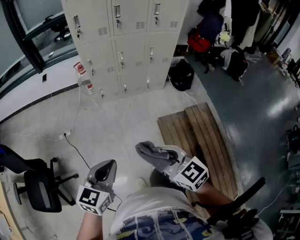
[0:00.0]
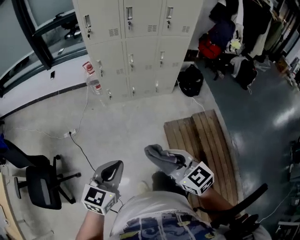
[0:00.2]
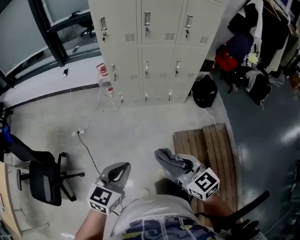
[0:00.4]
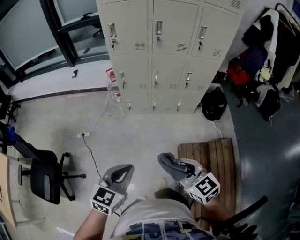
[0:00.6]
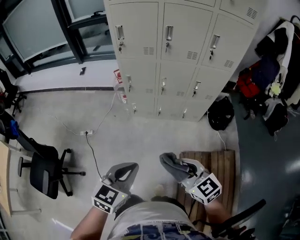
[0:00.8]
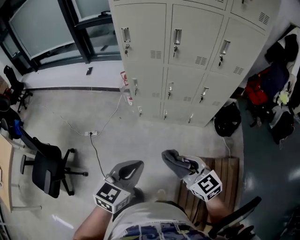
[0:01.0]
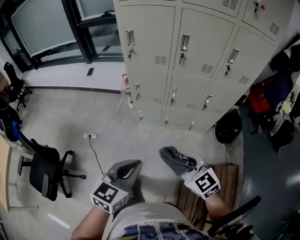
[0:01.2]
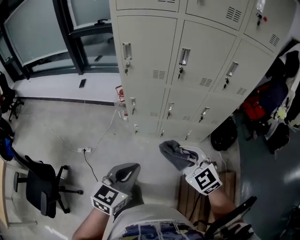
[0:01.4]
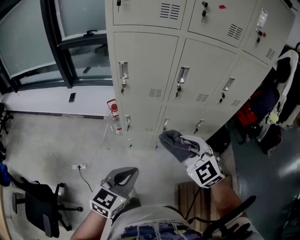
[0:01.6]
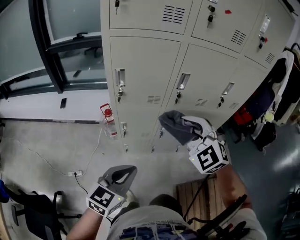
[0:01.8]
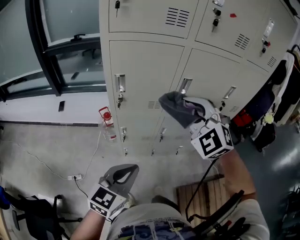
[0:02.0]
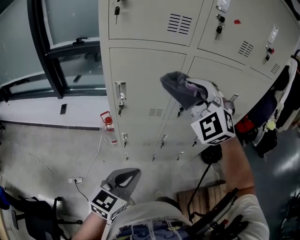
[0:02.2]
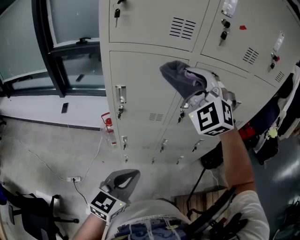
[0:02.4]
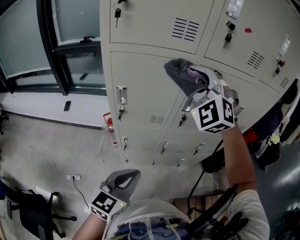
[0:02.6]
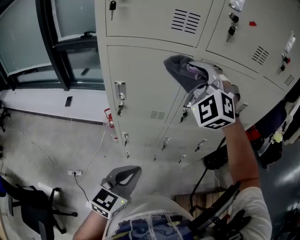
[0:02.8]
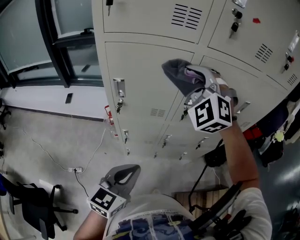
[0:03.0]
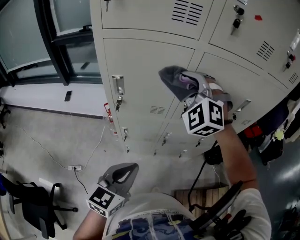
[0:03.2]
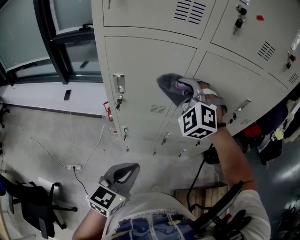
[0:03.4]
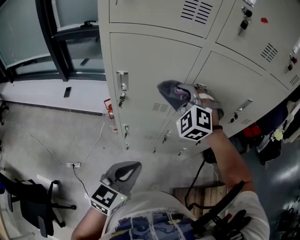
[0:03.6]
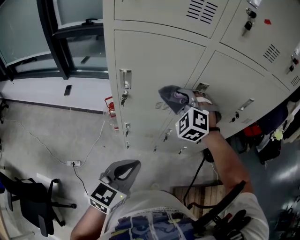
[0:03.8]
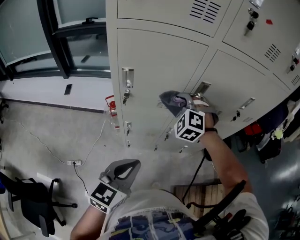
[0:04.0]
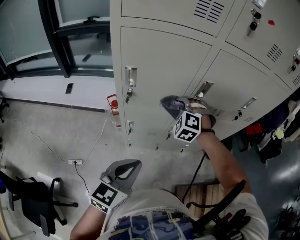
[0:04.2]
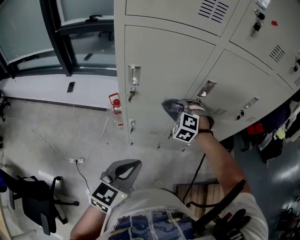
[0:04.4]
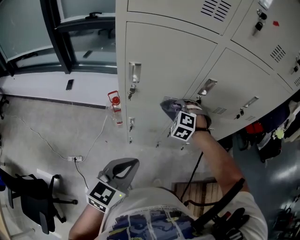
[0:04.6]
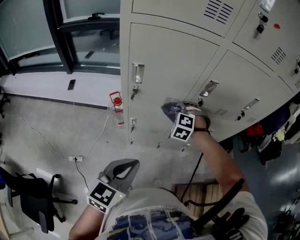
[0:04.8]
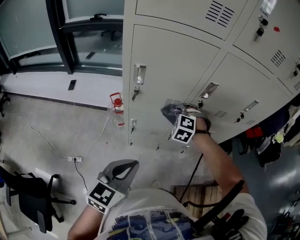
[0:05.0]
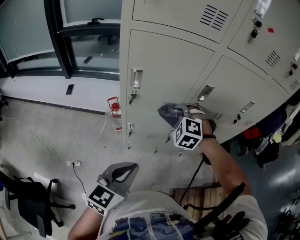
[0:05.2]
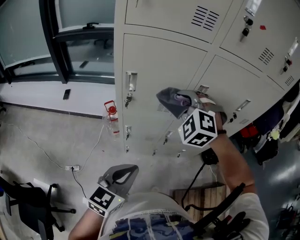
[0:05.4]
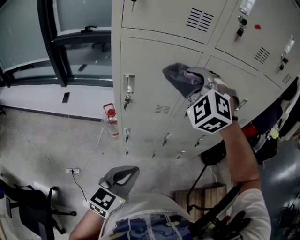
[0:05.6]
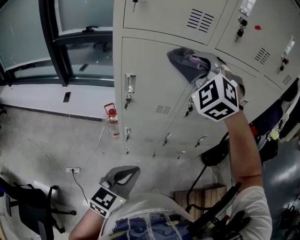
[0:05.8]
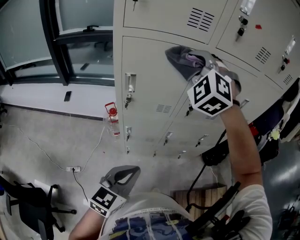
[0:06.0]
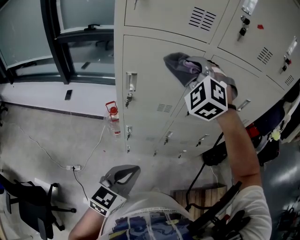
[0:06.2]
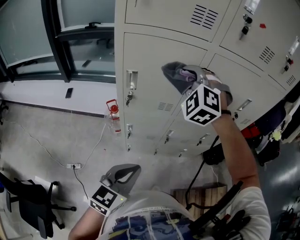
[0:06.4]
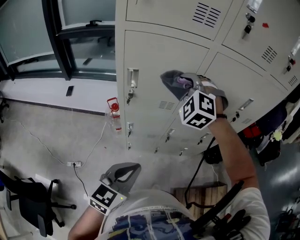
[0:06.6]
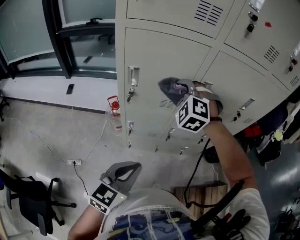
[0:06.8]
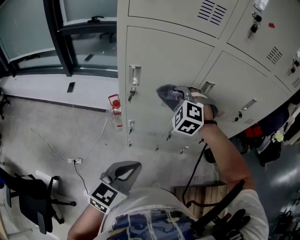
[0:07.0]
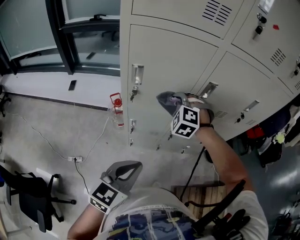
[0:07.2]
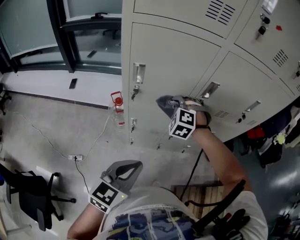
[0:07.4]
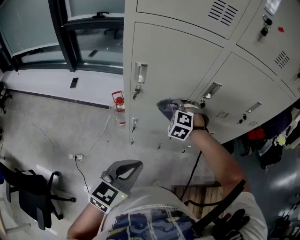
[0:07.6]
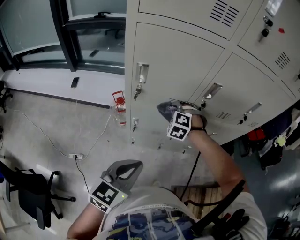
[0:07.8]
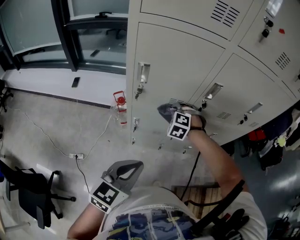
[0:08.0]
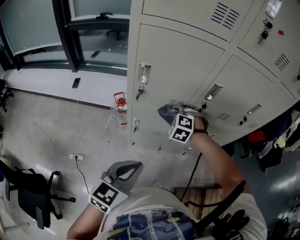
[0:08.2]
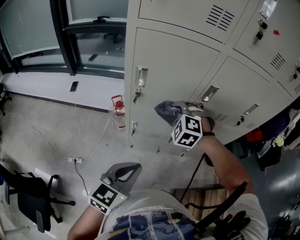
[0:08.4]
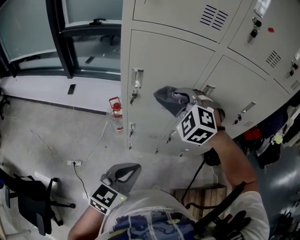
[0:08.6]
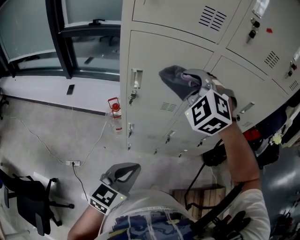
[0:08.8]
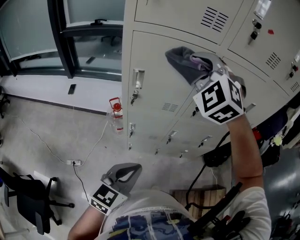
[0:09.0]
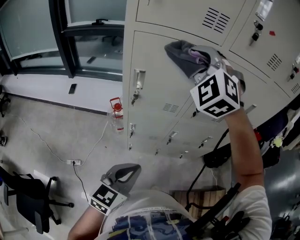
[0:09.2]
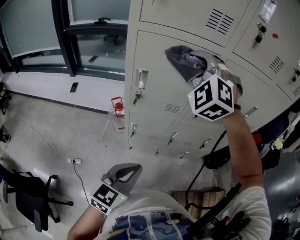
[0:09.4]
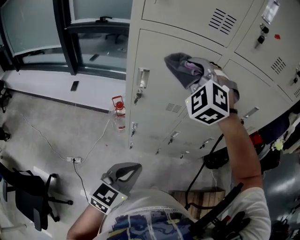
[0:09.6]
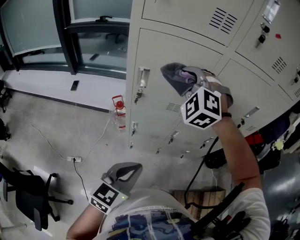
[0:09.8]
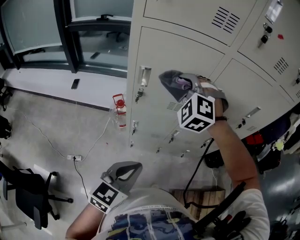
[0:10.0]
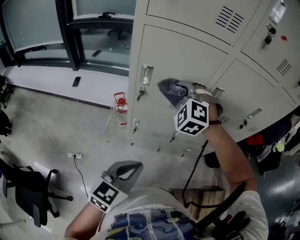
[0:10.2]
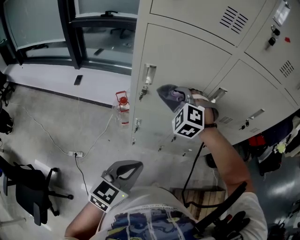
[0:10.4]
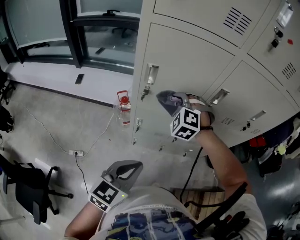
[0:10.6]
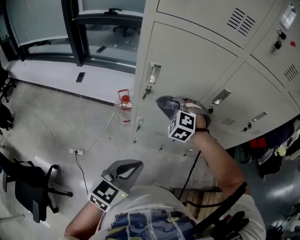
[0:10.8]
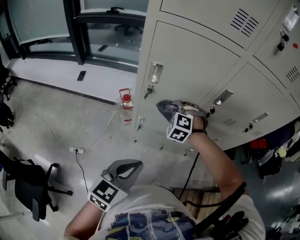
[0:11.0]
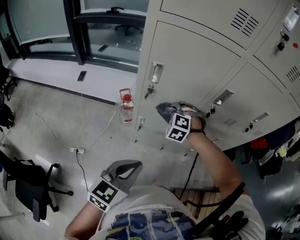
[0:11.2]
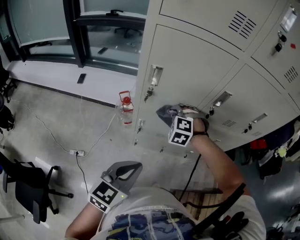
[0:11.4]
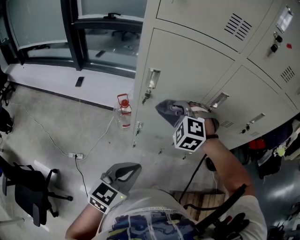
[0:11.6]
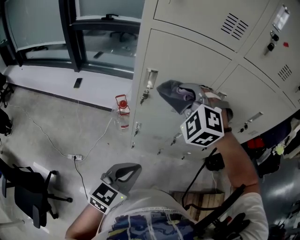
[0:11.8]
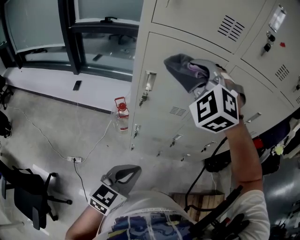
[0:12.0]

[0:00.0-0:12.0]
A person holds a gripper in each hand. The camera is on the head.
0:00.0 to 0:01.6: The pair of grippers is taken forward, about 50 cm. The right gripper turns by about 40 degrees.
0:01.6 to 0:03.0: The right gripper is displaced forward and upward by roughly 35 cm, and changes its angle by roughly 40 degrees. The left gripper moves forward, approximately 15 cm.
0:03.0 to 0:04.4: The left gripper changes place by some 5 cm, while the right gripper travels downward by approximately 30 cm, and tilts its fingers about 30 degrees downward.
0:04.4 to 0:06.0: The right gripper travels upward by some 30 cm, and rotates roughly 30 degrees.
0:06.0 to 0:07.6: The right gripper shifts about 35 cm downward, and tilts its fingers roughly 30 degrees downward.
0:07.6 to 0:09.0: The right gripper heads upward, covering approximately 30 cm, and rotates about 30 degrees.
0:09.0 to 0:10.4: The right gripper goes some 20 cm downward.
0:10.4 to 0:12.0: The right gripper travels upward by roughly 20 cm.

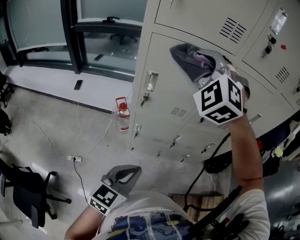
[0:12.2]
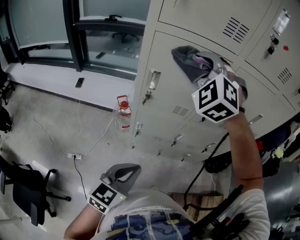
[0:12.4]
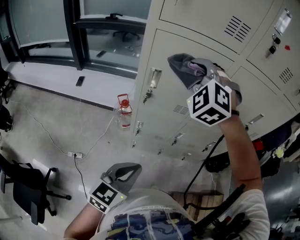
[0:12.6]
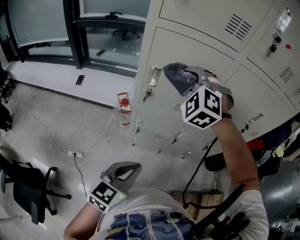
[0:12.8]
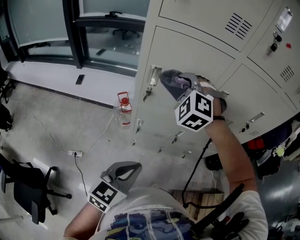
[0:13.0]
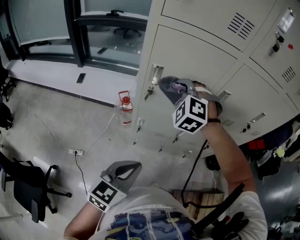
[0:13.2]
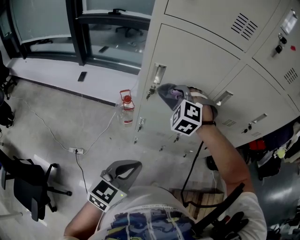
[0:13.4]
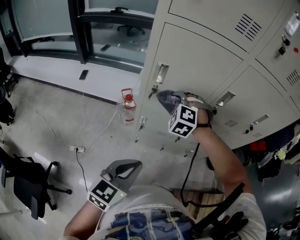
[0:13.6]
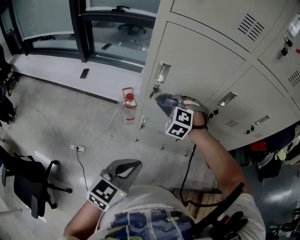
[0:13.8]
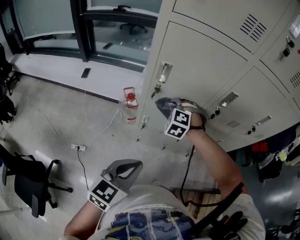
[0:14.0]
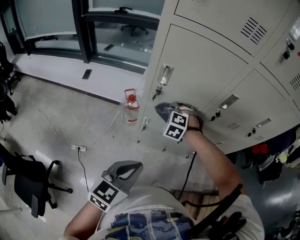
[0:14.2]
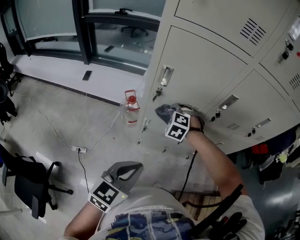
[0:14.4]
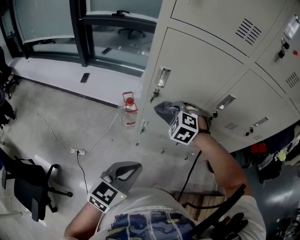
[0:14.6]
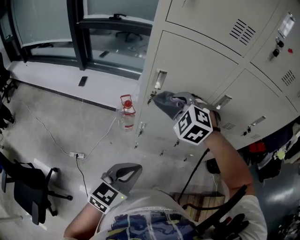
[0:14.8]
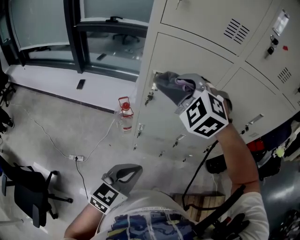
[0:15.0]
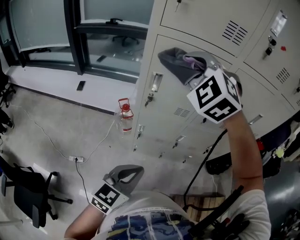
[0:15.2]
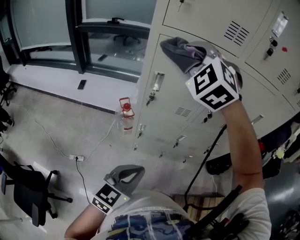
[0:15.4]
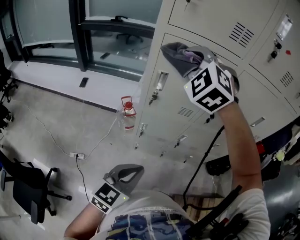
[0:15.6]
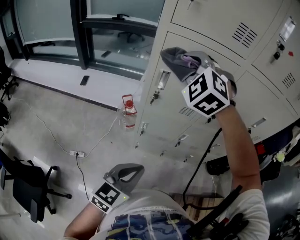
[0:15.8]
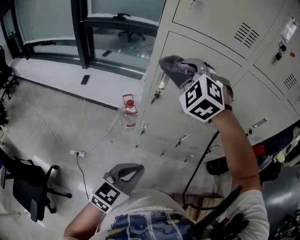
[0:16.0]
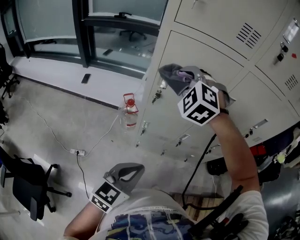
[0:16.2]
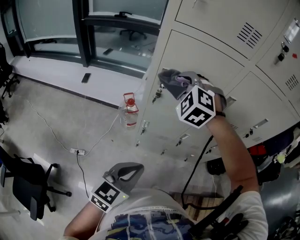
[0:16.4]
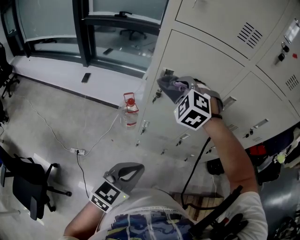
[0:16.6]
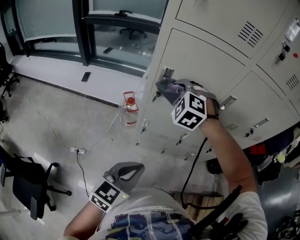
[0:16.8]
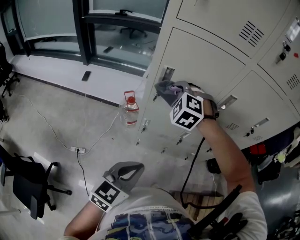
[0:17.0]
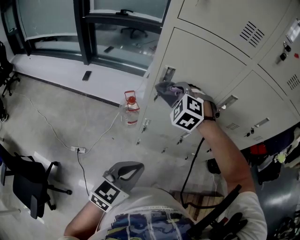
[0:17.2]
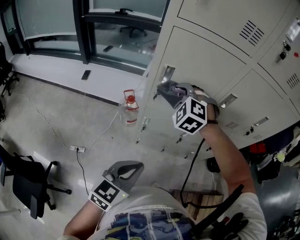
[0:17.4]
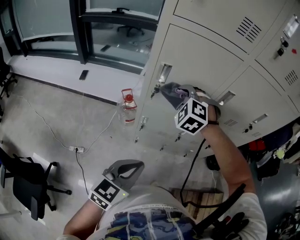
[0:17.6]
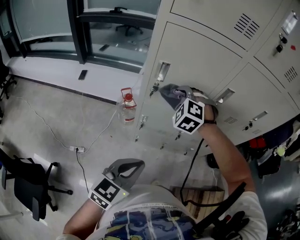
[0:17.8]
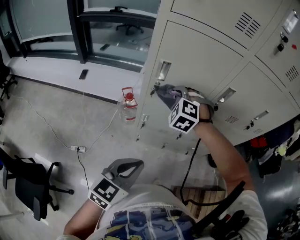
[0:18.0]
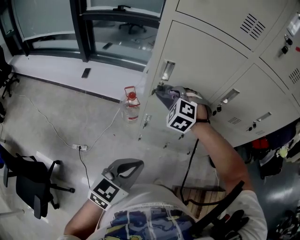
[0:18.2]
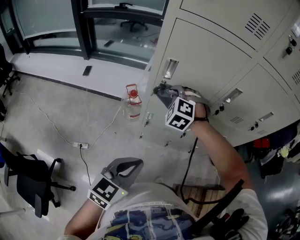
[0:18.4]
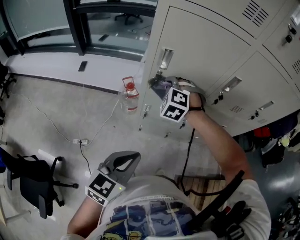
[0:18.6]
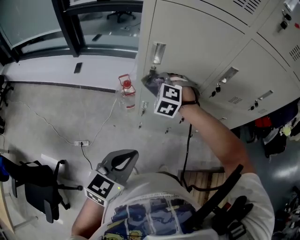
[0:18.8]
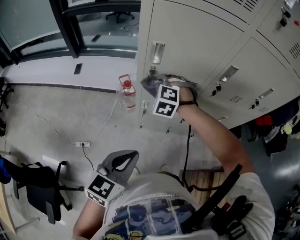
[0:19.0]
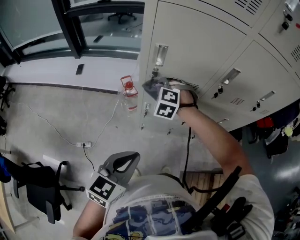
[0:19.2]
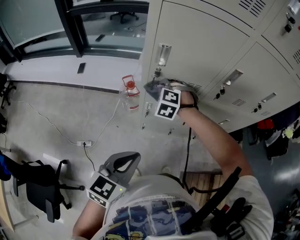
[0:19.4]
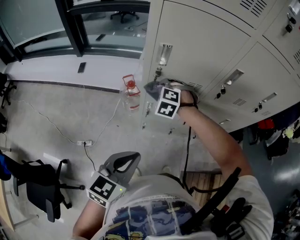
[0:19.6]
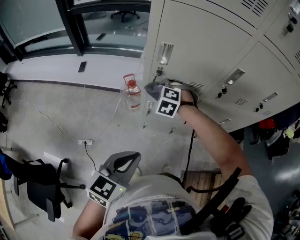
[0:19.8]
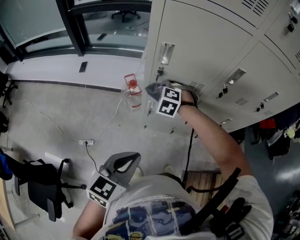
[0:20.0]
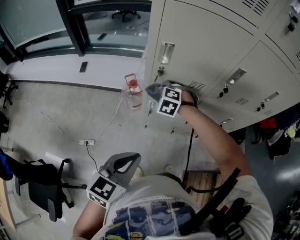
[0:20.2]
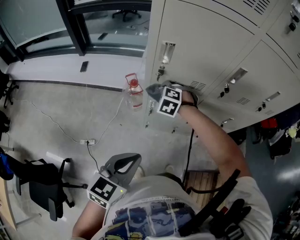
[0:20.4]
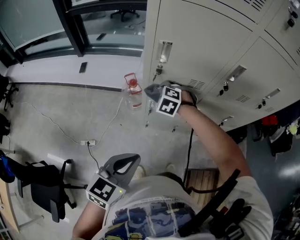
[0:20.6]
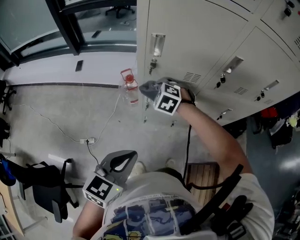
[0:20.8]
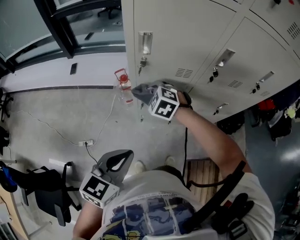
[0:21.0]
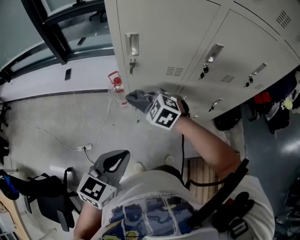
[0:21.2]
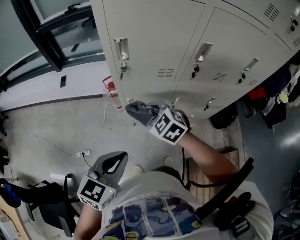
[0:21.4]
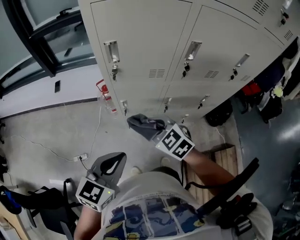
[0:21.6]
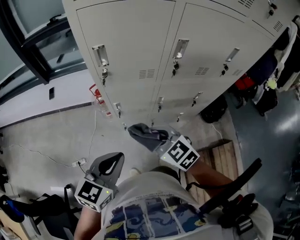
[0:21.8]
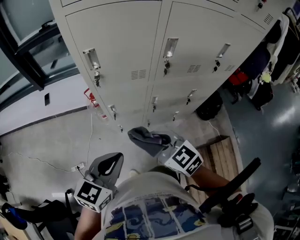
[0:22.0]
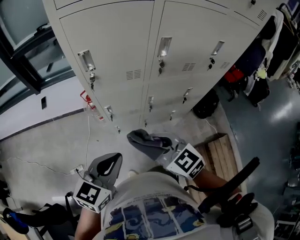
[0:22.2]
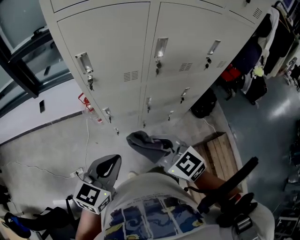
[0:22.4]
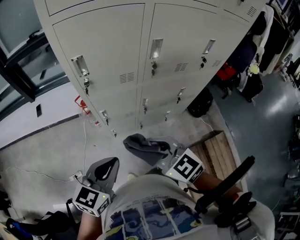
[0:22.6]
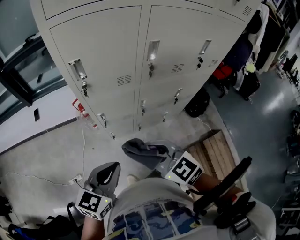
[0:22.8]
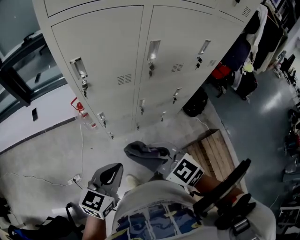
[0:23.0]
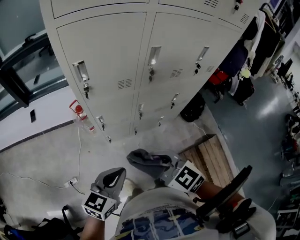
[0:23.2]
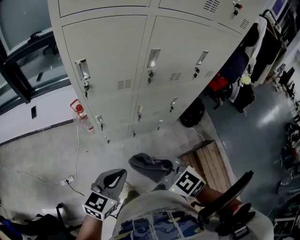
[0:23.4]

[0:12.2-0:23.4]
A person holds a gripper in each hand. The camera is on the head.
0:12.2 to 0:13.8: The right gripper travels downward by some 30 cm, and swivels about 30 degrees.
0:13.8 to 0:15.4: The right gripper travels upward by some 30 cm, and rotates approximately 30 degrees.
0:15.4 to 0:17.0: The right gripper is displaced downward by approximately 20 cm, and turns by roughly 20 degrees.
0:17.0 to 0:18.6: The right gripper shifts approximately 10 cm downward.
0:18.6 to 0:20.2: The right gripper moves downward, approximately 10 cm.
0:20.2 to 0:21.8: The left gripper moves to the right, about 5 cm. Meanwhile the right gripper heads backward and to the right, covering approximately 25 cm, and rotates around the line of its fingers by about 50 degrees, clockwise from behind.
0:21.8 to 0:23.4: The left gripper shifts about 5 cm backward. Meanwhile the right gripper moves backward, some 10 cm.

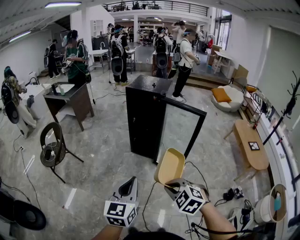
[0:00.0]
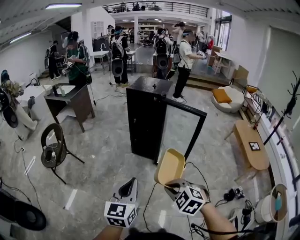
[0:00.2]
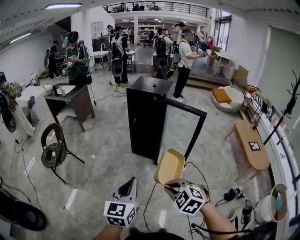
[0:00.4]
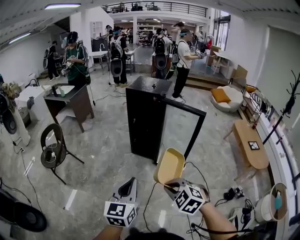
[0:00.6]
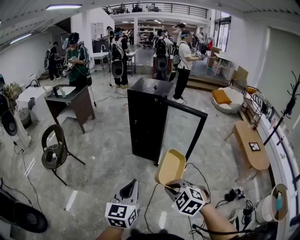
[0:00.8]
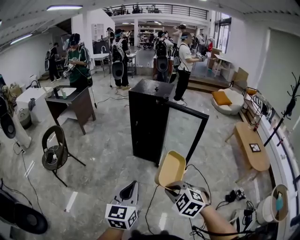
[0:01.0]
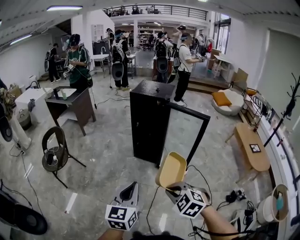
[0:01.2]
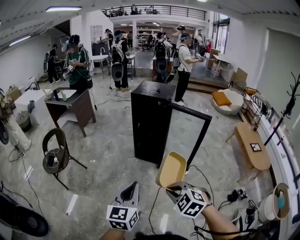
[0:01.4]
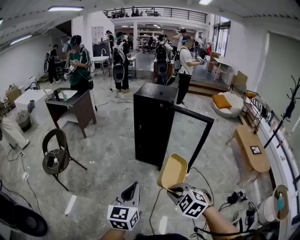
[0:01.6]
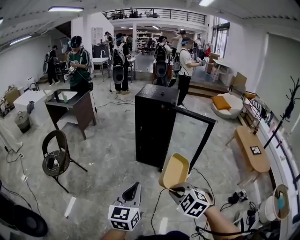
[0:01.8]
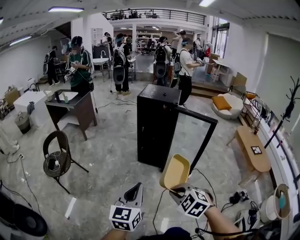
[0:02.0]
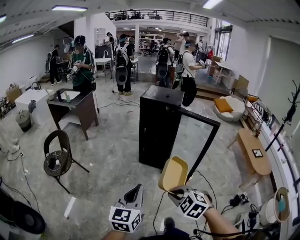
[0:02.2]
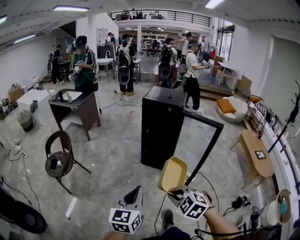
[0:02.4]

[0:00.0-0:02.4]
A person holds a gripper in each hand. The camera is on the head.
0:00.0 to 0:01.2: The grippers stay close to where they were, moving slightly.
0:01.2 to 0:02.4: Both grippers move to the left, roughly 10 cm.
